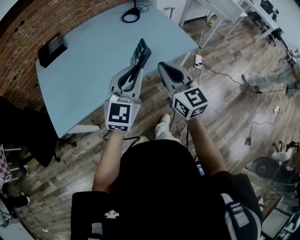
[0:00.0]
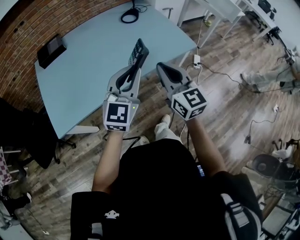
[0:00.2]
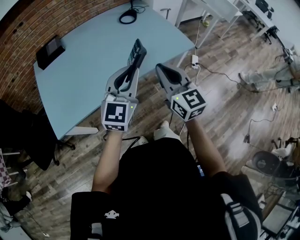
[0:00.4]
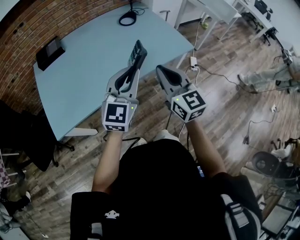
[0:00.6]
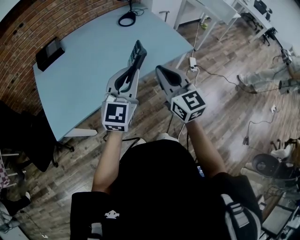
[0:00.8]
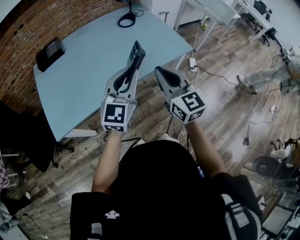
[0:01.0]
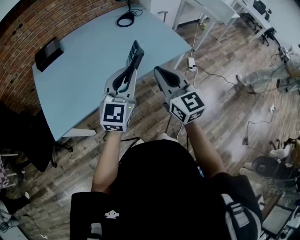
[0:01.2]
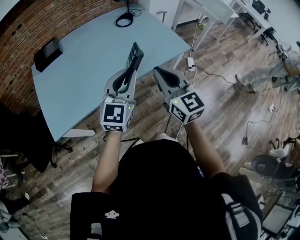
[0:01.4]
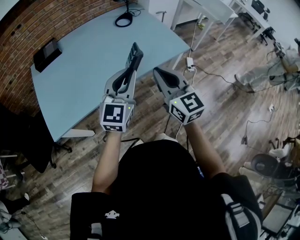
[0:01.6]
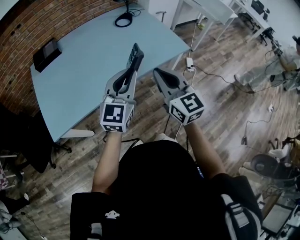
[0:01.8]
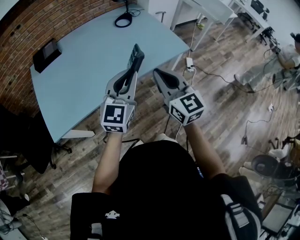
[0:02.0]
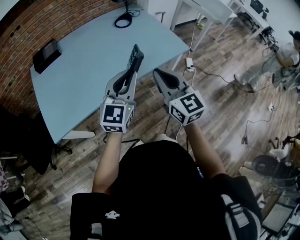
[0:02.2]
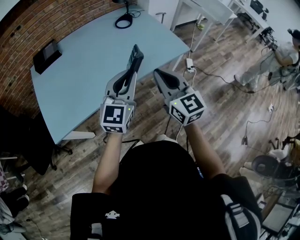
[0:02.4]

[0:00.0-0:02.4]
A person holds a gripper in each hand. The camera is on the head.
0:00.0 to 0:01.2: The grippers stay close to where they were, moving slightly.
0:01.2 to 0:02.4: Both grippers stay about where they are.

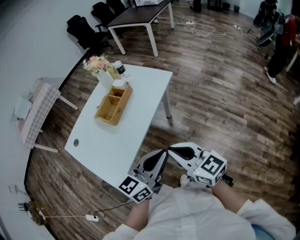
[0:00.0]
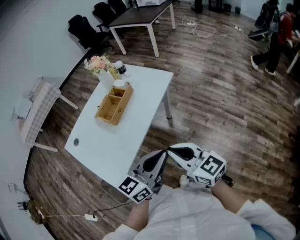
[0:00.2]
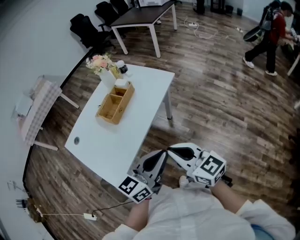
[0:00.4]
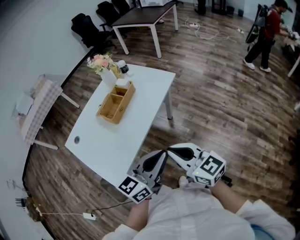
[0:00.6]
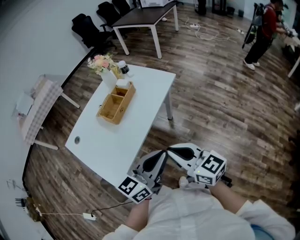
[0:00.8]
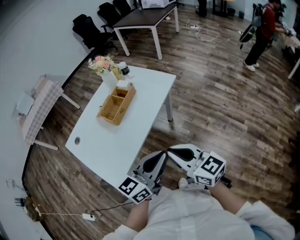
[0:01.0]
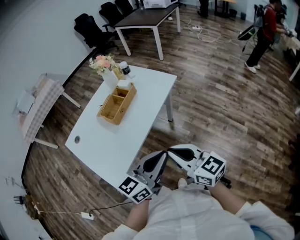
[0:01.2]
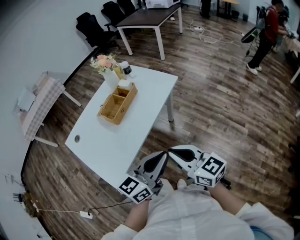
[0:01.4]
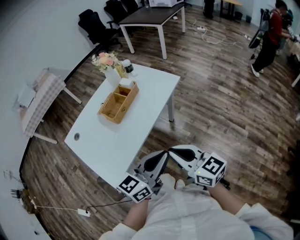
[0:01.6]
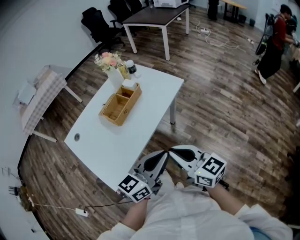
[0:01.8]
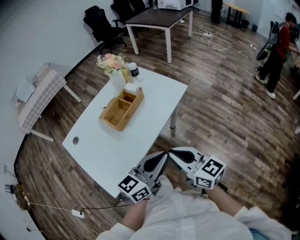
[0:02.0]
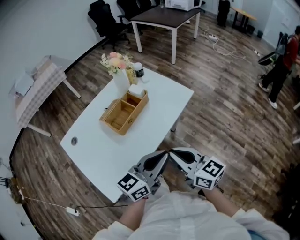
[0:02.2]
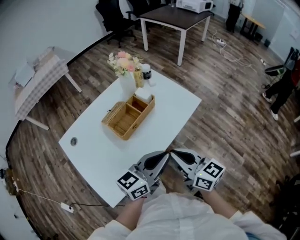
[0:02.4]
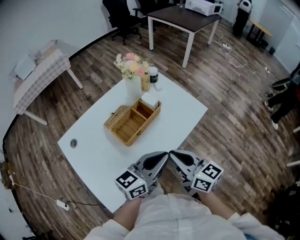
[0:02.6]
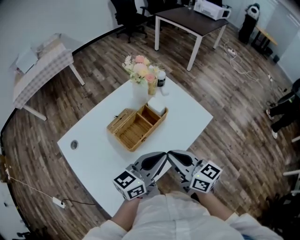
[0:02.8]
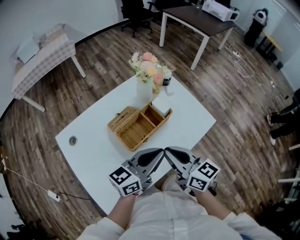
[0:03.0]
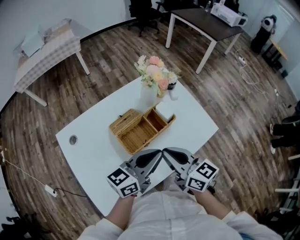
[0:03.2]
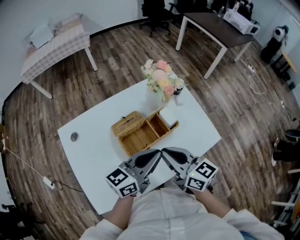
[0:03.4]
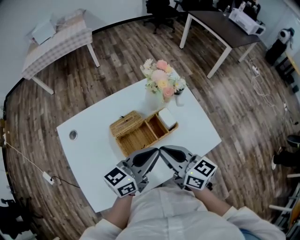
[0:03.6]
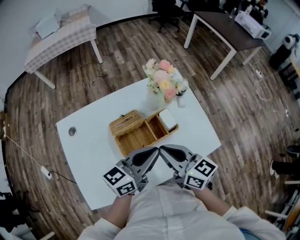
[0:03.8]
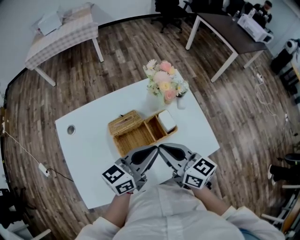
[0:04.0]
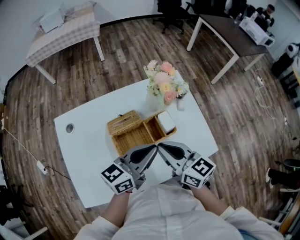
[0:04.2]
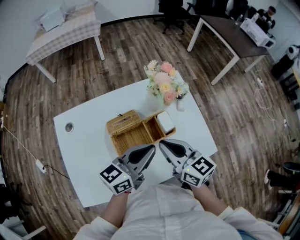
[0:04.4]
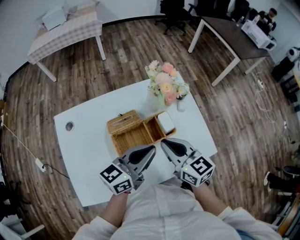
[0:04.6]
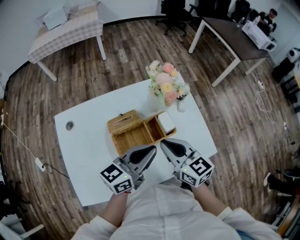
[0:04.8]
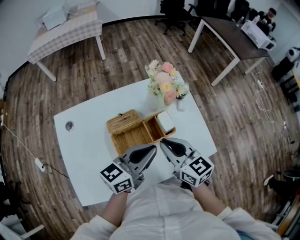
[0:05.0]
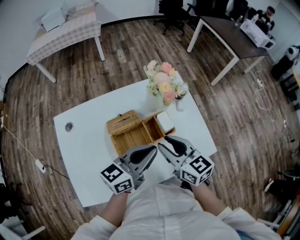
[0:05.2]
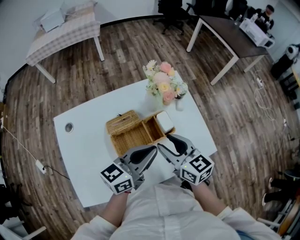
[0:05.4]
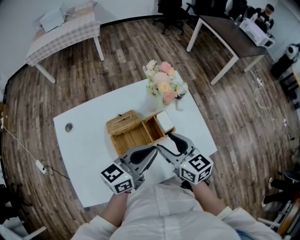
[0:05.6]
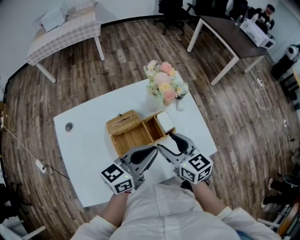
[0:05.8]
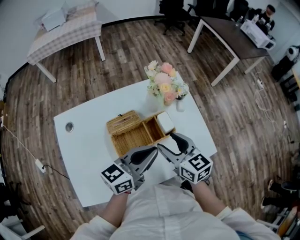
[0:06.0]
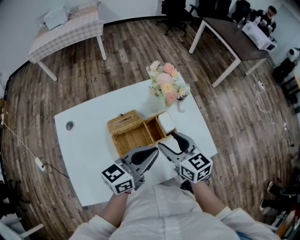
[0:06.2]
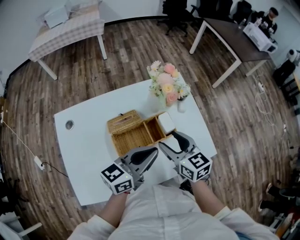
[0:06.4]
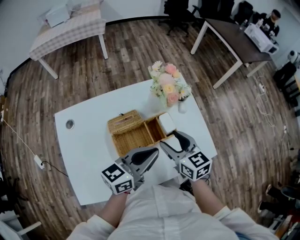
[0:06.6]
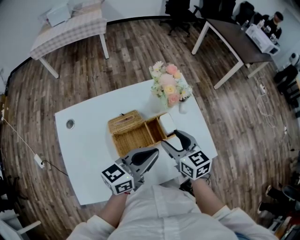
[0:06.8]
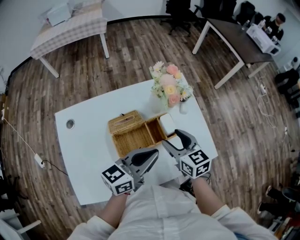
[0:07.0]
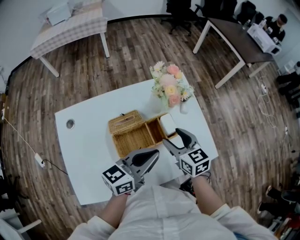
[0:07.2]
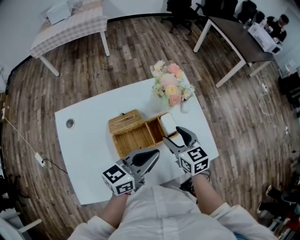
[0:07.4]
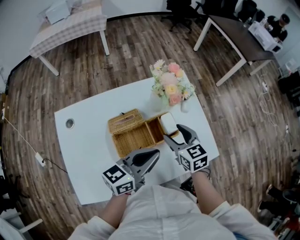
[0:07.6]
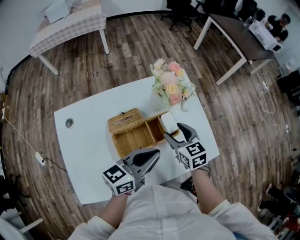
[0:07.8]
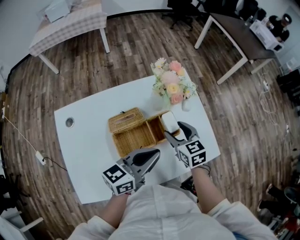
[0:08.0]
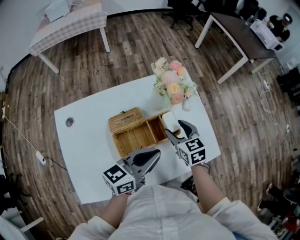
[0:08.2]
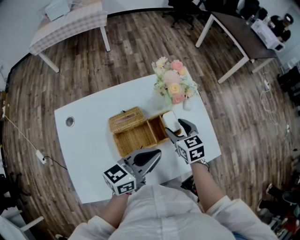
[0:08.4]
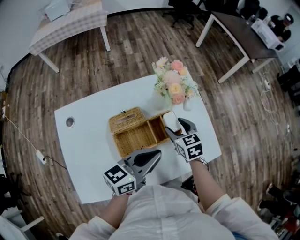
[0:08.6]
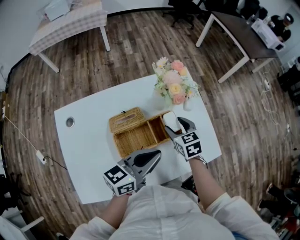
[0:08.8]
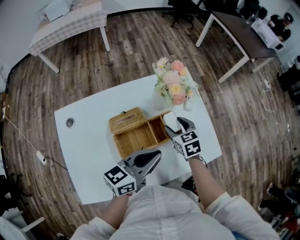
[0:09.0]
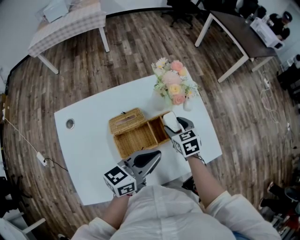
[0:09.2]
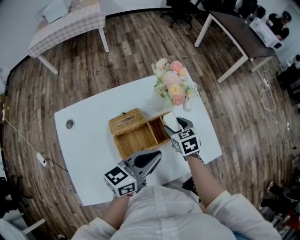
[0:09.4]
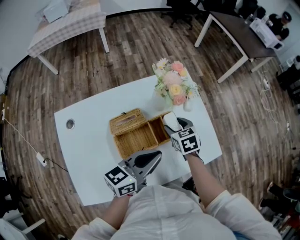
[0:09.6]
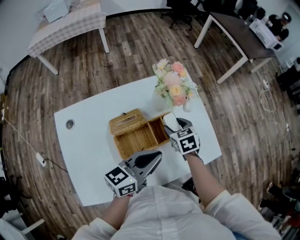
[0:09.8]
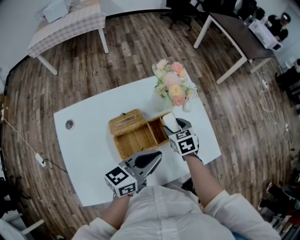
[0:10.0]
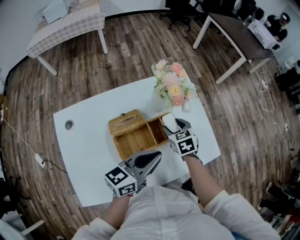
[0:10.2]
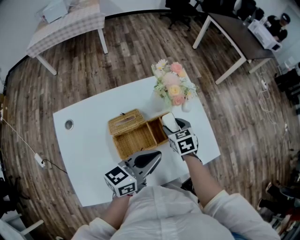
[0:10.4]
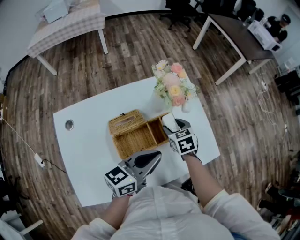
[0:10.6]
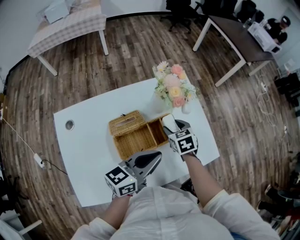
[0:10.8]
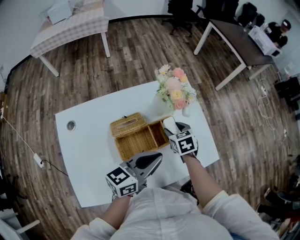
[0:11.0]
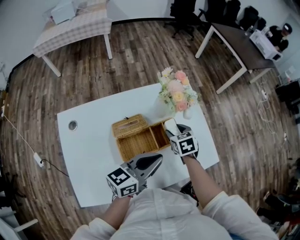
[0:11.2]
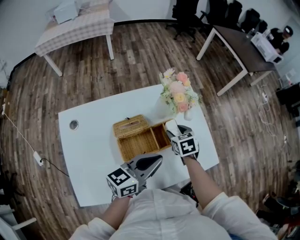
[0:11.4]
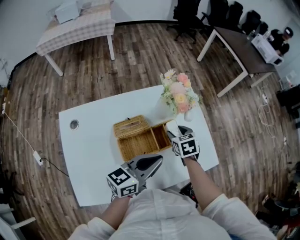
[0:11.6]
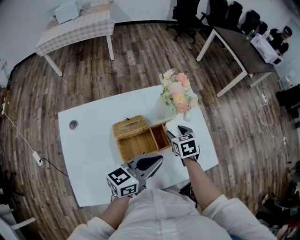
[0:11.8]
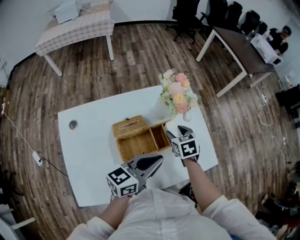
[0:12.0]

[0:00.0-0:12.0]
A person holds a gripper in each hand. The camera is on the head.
0:00.0 to 0:01.6: The grippers move only a little.
0:01.6 to 0:03.0: The grippers both shift forward and to the left by some 30 cm.
0:03.0 to 0:04.4: Both grippers travel together forward, approximately 10 cm. The right gripper turns by approximately 20 degrees.
0:04.4 to 0:06.0: The right gripper opens its fingers.
0:06.0 to 0:07.6: The right gripper moves forward and downward, roughly 10 cm.
0:07.6 to 0:09.0: The right gripper goes some 5 cm downward.
0:09.0 to 0:12.0: The grippers make only small movements.

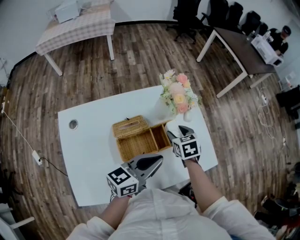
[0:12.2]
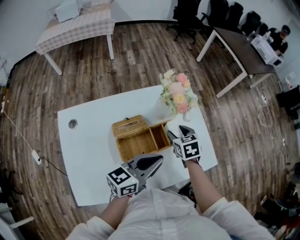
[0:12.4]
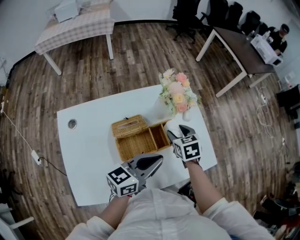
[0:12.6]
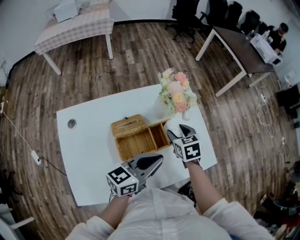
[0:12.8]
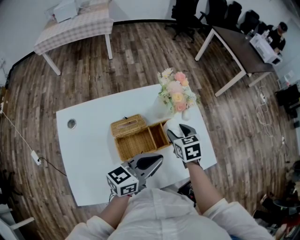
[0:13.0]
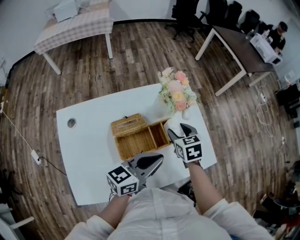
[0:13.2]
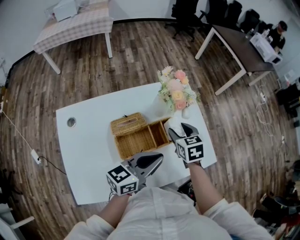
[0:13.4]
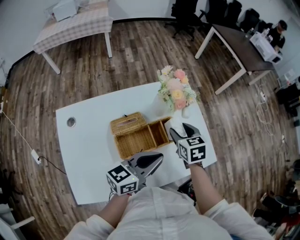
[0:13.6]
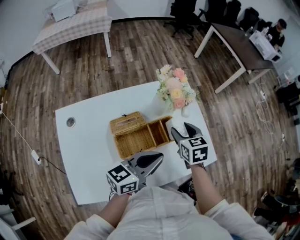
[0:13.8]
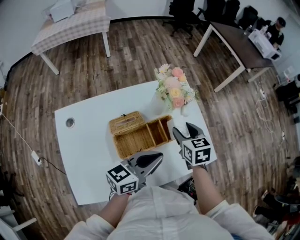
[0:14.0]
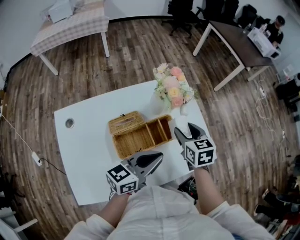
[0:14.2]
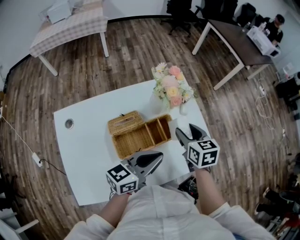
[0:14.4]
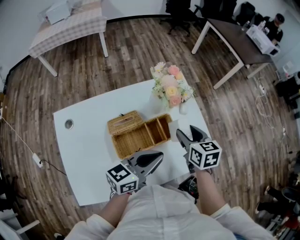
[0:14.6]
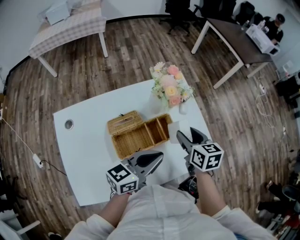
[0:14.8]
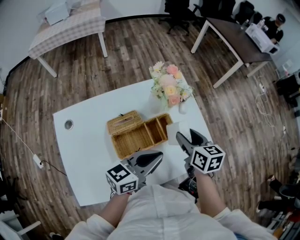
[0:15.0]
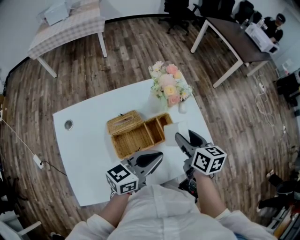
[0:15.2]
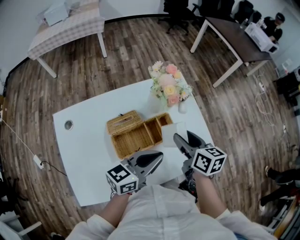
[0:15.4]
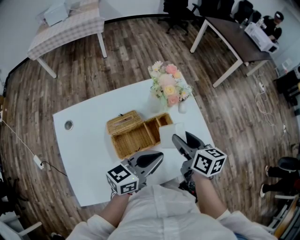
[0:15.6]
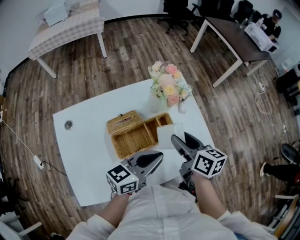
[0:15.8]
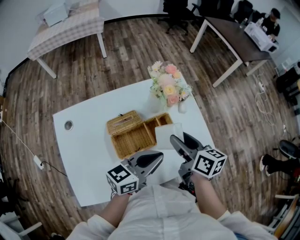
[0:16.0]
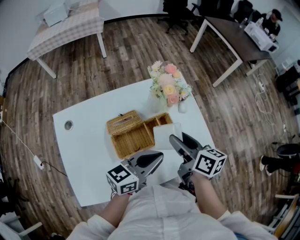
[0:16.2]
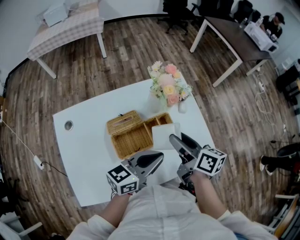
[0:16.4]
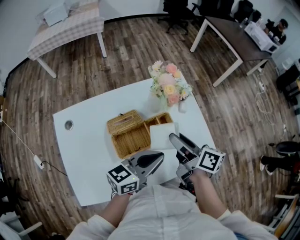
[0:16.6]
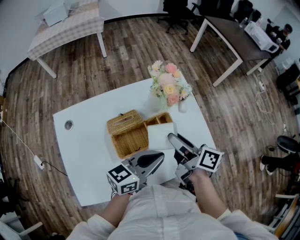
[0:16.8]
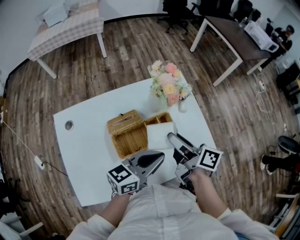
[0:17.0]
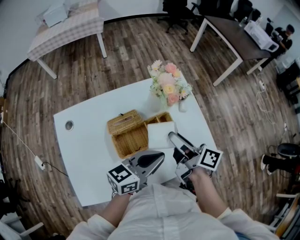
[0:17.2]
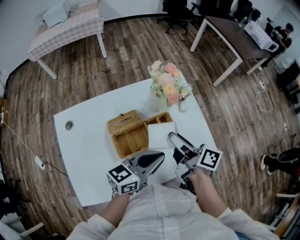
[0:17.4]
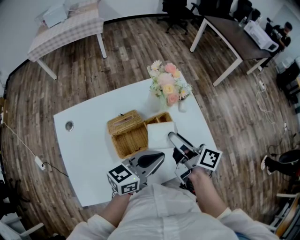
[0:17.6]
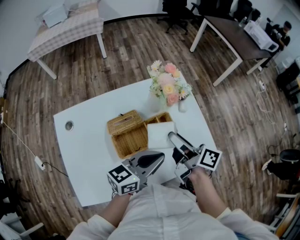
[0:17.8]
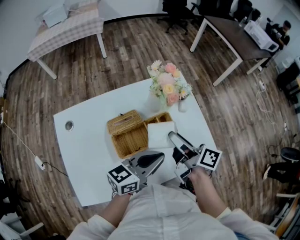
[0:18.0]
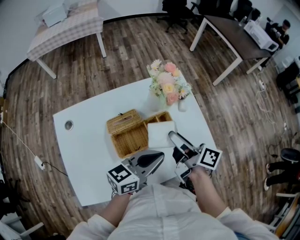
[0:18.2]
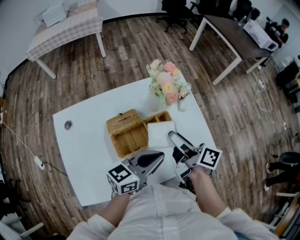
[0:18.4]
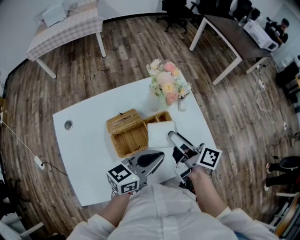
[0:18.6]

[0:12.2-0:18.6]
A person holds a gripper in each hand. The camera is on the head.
0:12.2 to 0:13.8: The right gripper shifts roughly 5 cm upward.
0:13.8 to 0:15.4: The right gripper moves about 5 cm, and swivels some 30 degrees.
0:15.4 to 0:17.0: The right gripper changes place by about 5 cm, and rotates approximately 30 degrees.
0:17.0 to 0:18.6: The two grippers keep their place.

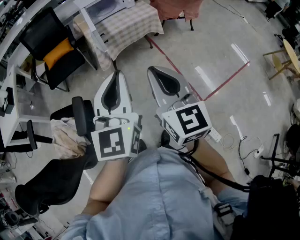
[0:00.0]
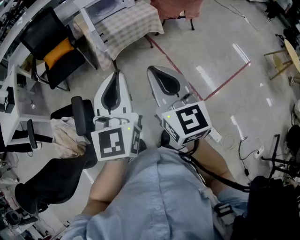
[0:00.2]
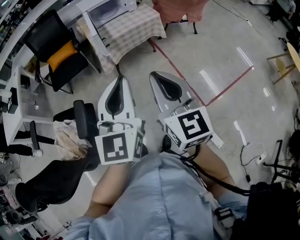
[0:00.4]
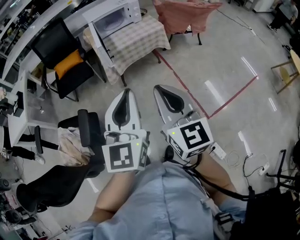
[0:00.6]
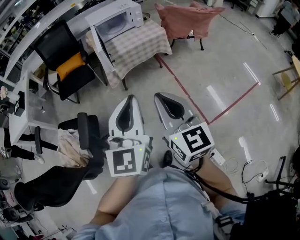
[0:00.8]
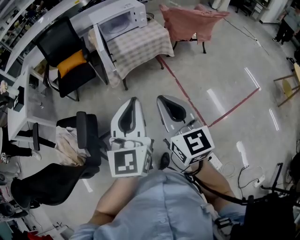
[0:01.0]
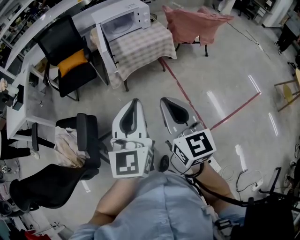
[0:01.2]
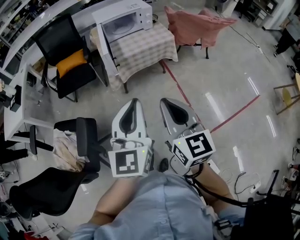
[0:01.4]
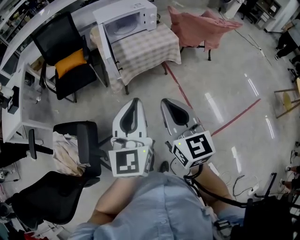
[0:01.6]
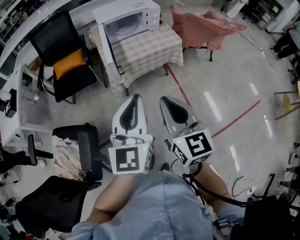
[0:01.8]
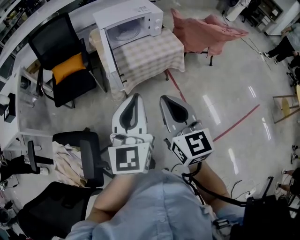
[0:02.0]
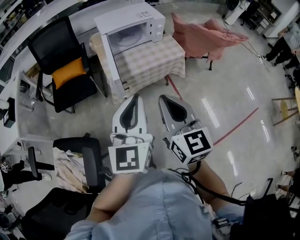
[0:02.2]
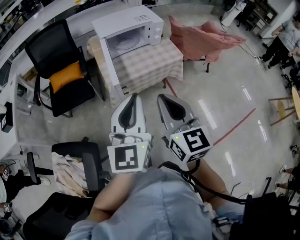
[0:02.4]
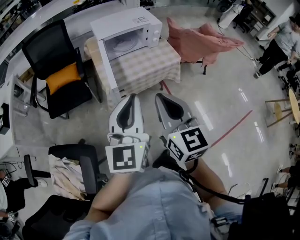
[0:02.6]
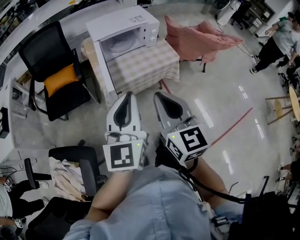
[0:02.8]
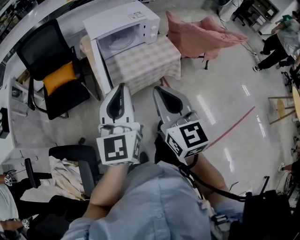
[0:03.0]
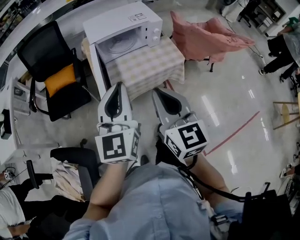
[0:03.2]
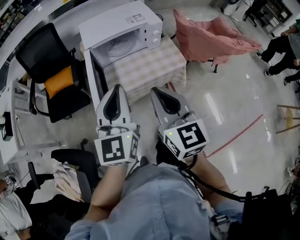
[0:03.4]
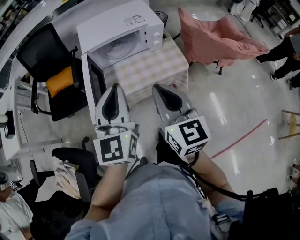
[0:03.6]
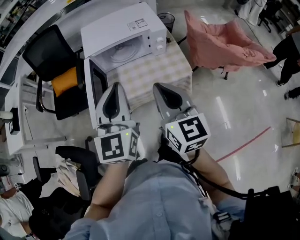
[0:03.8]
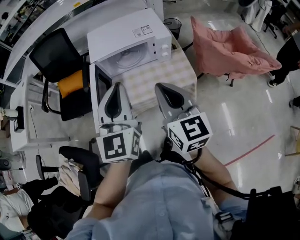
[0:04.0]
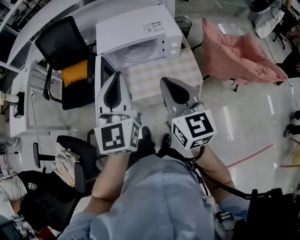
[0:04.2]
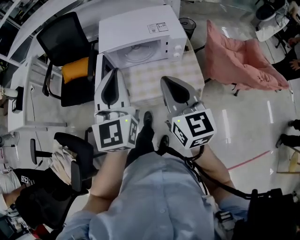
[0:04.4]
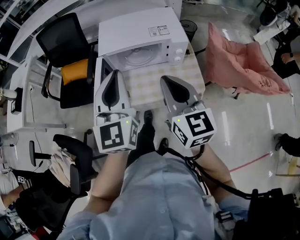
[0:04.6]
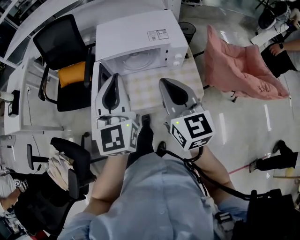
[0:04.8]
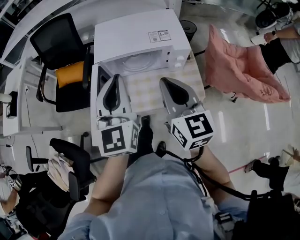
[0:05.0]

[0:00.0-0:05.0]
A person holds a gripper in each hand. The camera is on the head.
0:00.0 to 0:01.6: Both grippers travel together forward, about 15 cm.
0:01.6 to 0:03.4: Both grippers travel together forward, some 35 cm.
0:03.4 to 0:05.0: The grippers both shift forward by approximately 20 cm.
